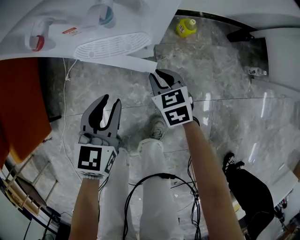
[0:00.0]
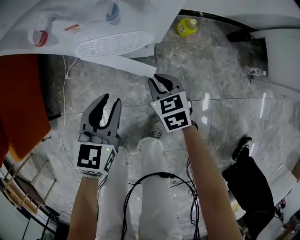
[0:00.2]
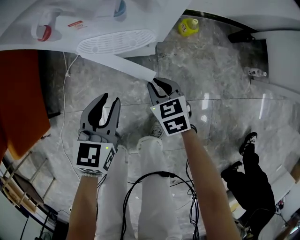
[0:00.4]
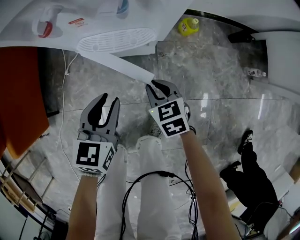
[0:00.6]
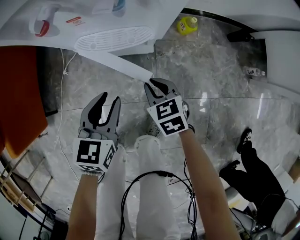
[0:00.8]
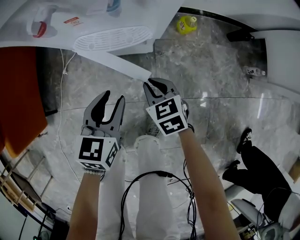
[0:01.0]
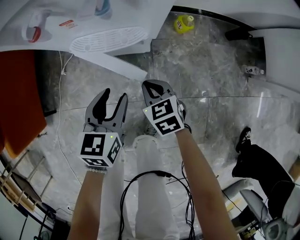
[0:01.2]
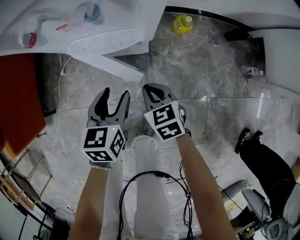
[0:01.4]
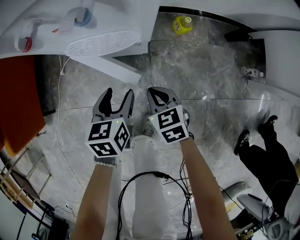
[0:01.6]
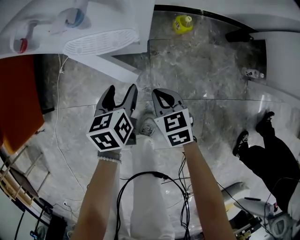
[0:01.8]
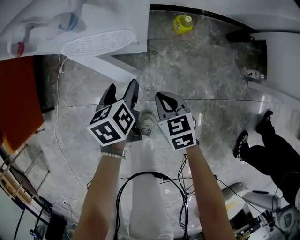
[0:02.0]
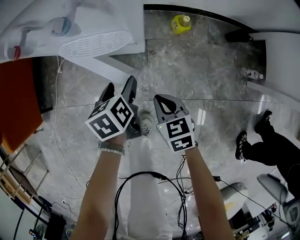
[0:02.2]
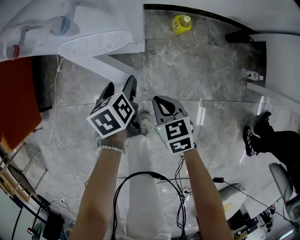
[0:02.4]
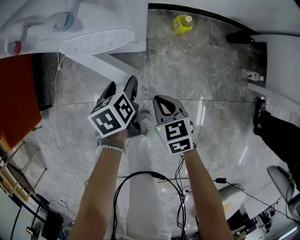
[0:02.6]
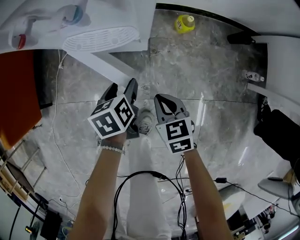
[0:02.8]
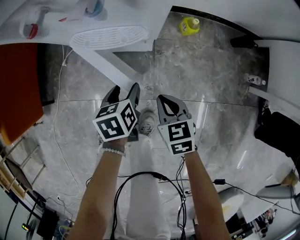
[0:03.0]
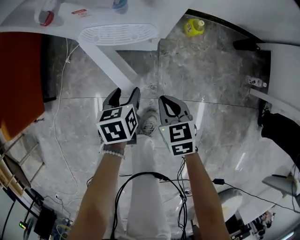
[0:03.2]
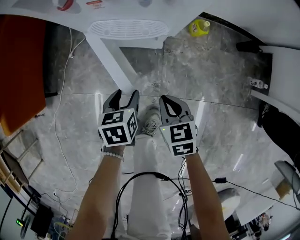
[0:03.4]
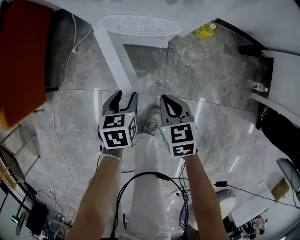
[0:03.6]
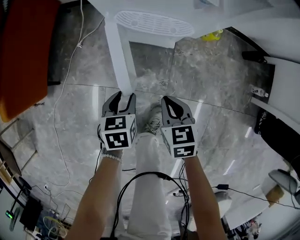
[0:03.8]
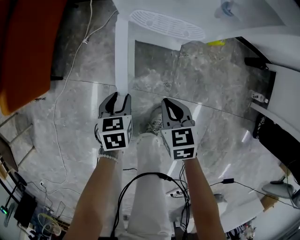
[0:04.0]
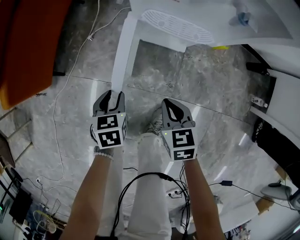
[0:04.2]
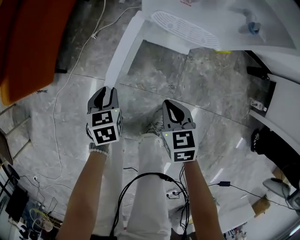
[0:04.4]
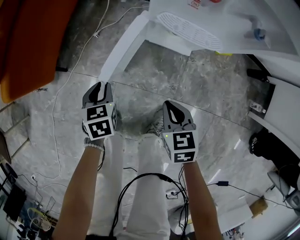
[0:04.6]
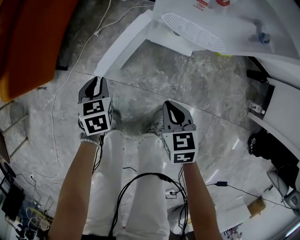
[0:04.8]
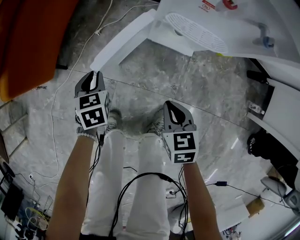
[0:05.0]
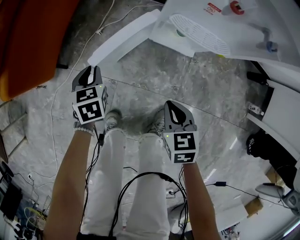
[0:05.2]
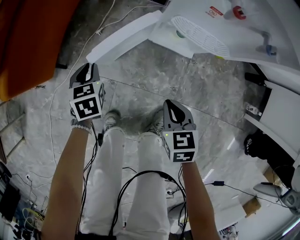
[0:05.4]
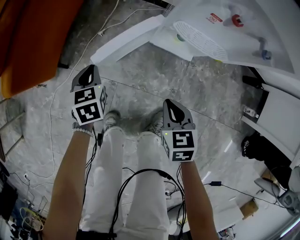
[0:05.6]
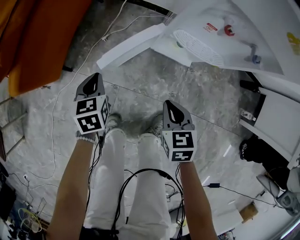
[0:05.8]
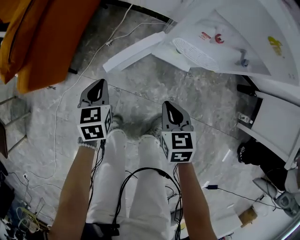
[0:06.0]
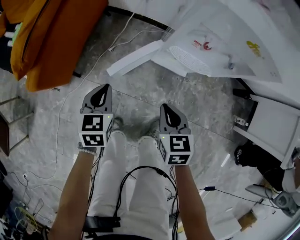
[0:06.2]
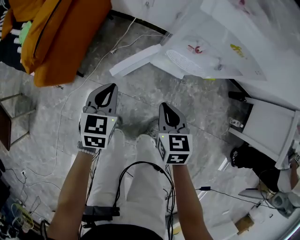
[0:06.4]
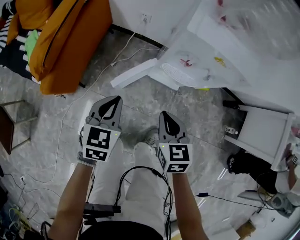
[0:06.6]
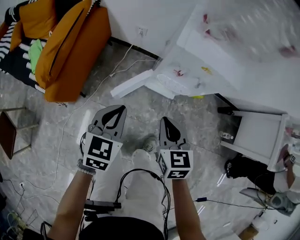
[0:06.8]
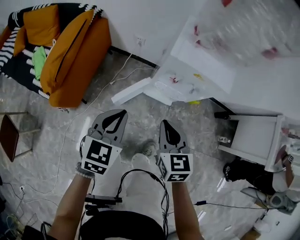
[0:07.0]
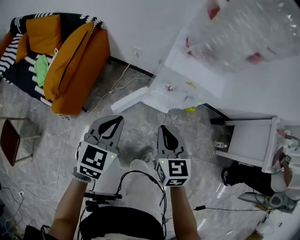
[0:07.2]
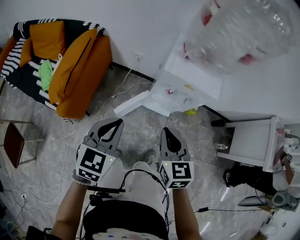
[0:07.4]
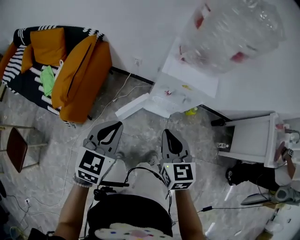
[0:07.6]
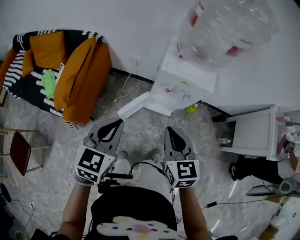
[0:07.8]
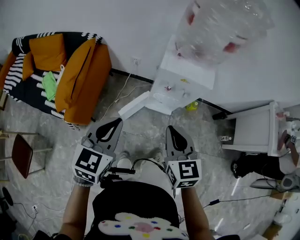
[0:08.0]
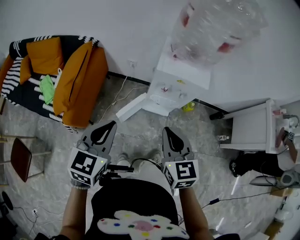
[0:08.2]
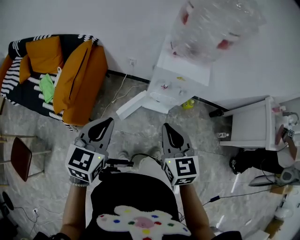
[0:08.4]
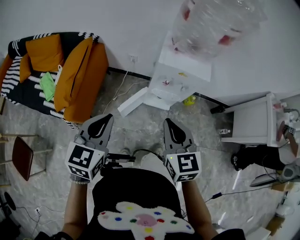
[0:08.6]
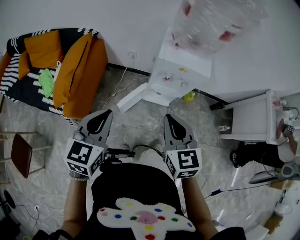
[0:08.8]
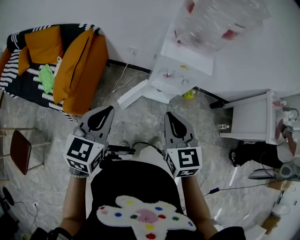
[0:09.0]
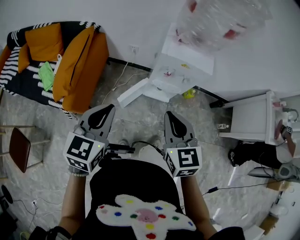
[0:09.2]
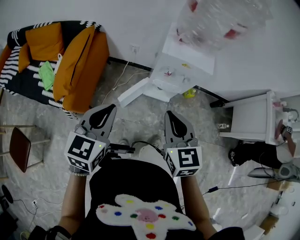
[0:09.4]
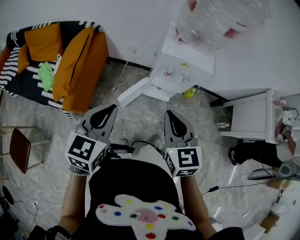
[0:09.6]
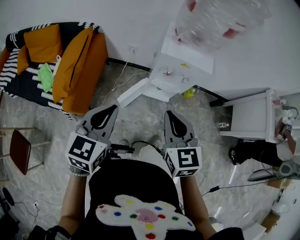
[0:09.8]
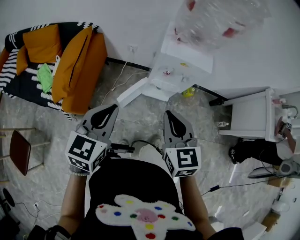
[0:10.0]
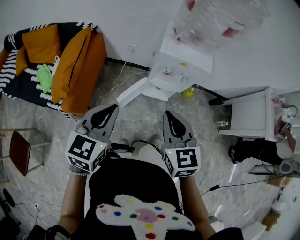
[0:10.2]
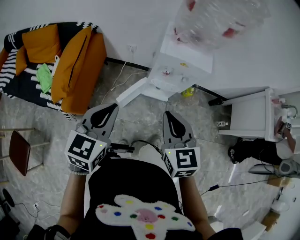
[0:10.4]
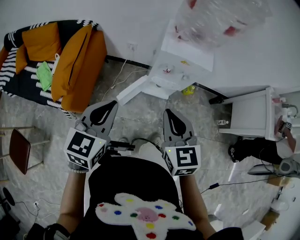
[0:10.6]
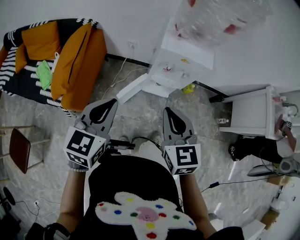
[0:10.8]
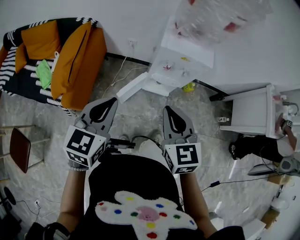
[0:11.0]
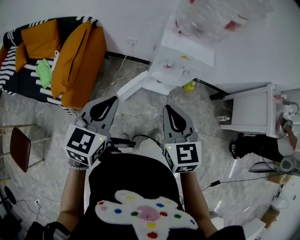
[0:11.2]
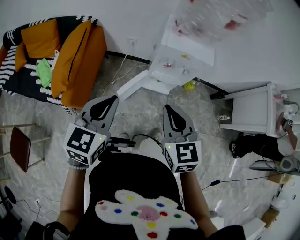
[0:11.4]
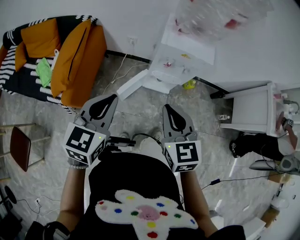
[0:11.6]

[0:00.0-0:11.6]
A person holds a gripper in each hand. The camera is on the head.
0:00.0 to 0:01.4: The left gripper changes place by approximately 5 cm, and opens its fingers. Meanwhile the right gripper goes some 5 cm backward.
0:01.4 to 0:02.8: The left gripper travels downward by approximately 5 cm, and turns by approximately 30 degrees. Meanwhile the right gripper travels to the right by roughly 5 cm.
0:02.8 to 0:04.4: The right gripper is displaced to the left by approximately 15 cm. The left gripper goes roughly 25 cm to the left, turns by some 20 degrees, and closes its fingers.
0:04.4 to 0:05.8: The right gripper changes place by approximately 10 cm. The left gripper shifts some 15 cm forward, to the left and upward.
0:05.8 to 0:07.2: Both grippers move upward, roughly 40 cm. The right gripper turns by approximately 20 degrees. Meanwhile the left gripper turns by about 40 degrees.
0:07.2 to 0:08.8: The left gripper shifts about 15 cm upward, backward and to the left. Meanwhile the right gripper goes some 15 cm upward and backward.
0:08.8 to 0:10.2: The grippers make only small movements.
0:10.2 to 0:11.6: Both grippers stay put.

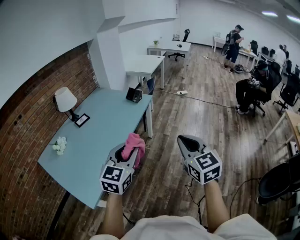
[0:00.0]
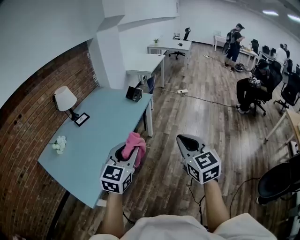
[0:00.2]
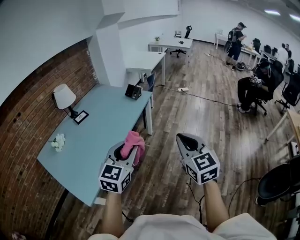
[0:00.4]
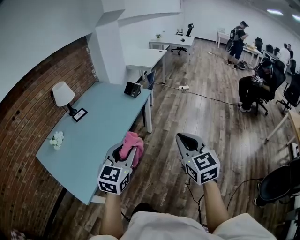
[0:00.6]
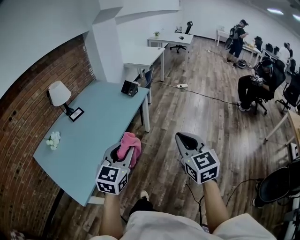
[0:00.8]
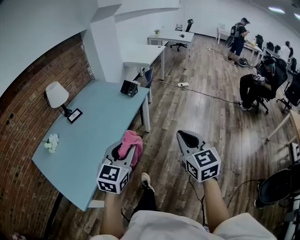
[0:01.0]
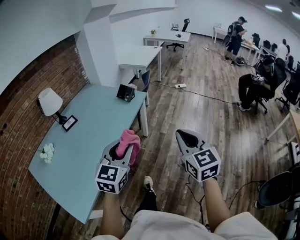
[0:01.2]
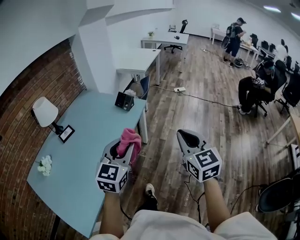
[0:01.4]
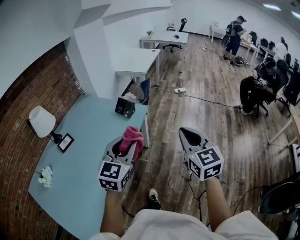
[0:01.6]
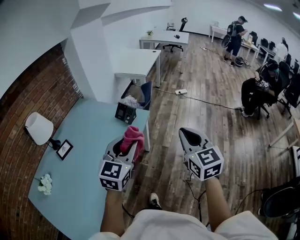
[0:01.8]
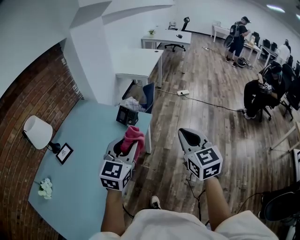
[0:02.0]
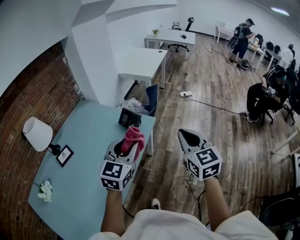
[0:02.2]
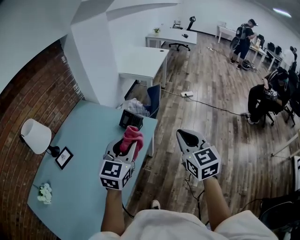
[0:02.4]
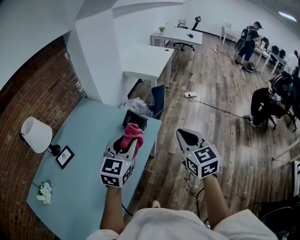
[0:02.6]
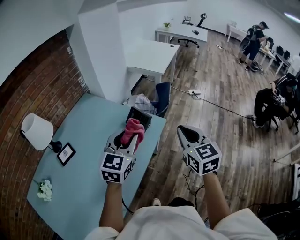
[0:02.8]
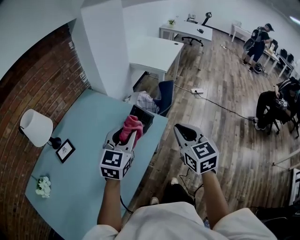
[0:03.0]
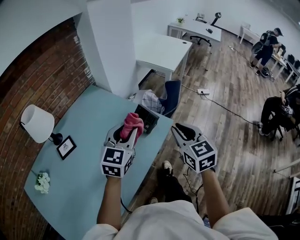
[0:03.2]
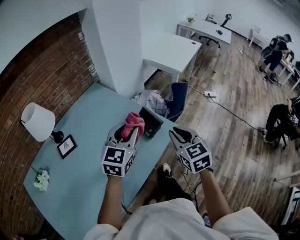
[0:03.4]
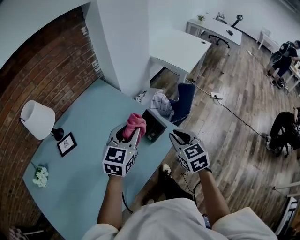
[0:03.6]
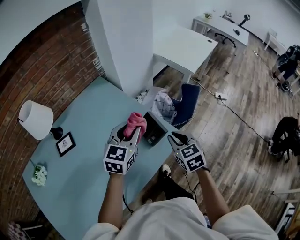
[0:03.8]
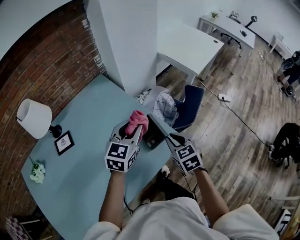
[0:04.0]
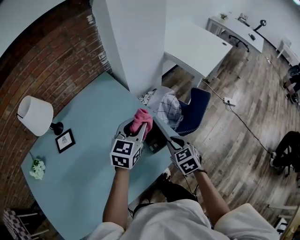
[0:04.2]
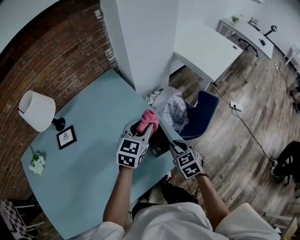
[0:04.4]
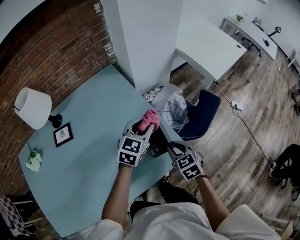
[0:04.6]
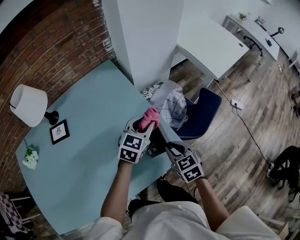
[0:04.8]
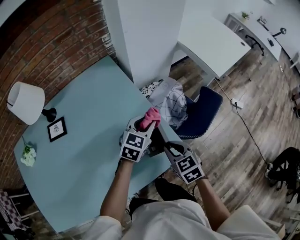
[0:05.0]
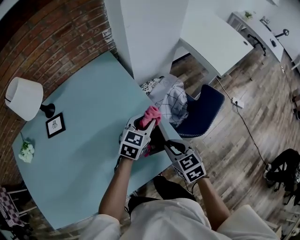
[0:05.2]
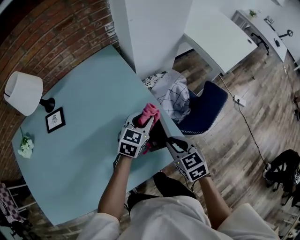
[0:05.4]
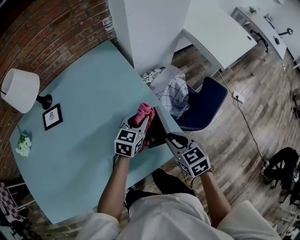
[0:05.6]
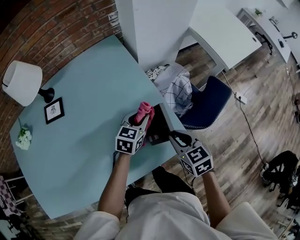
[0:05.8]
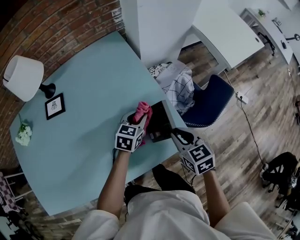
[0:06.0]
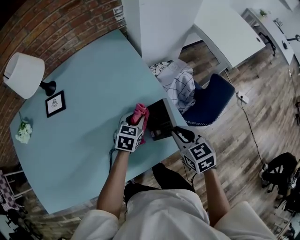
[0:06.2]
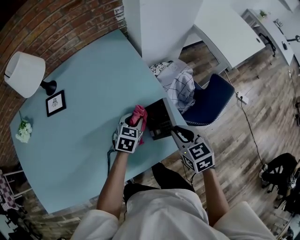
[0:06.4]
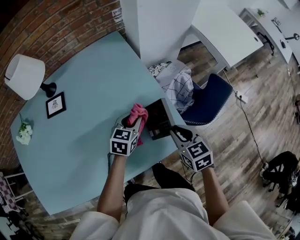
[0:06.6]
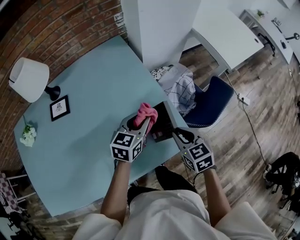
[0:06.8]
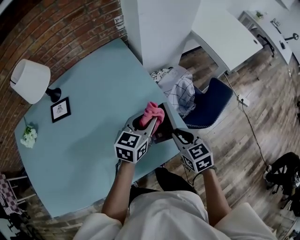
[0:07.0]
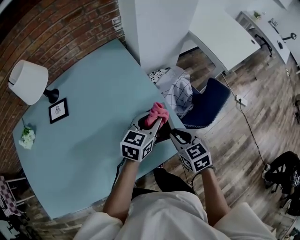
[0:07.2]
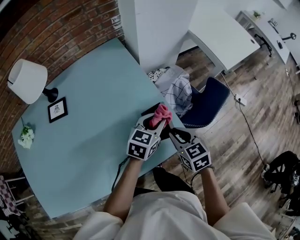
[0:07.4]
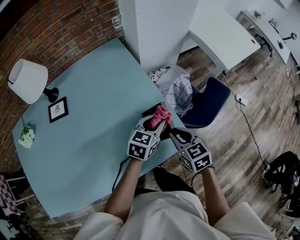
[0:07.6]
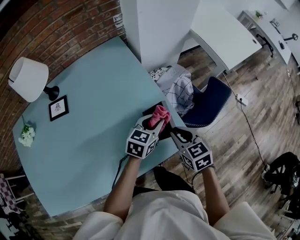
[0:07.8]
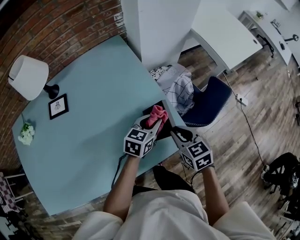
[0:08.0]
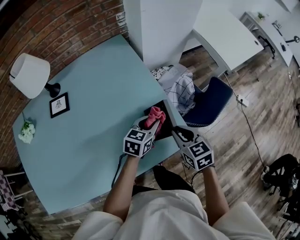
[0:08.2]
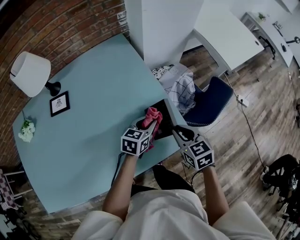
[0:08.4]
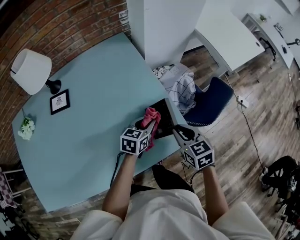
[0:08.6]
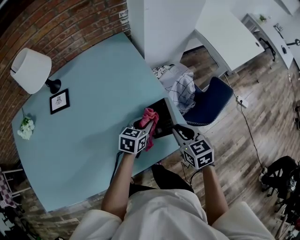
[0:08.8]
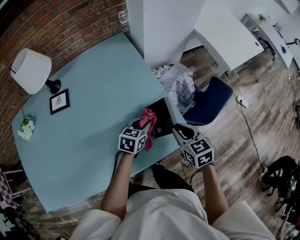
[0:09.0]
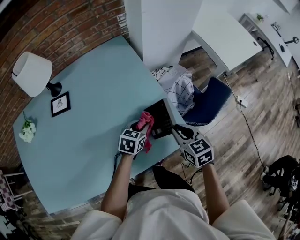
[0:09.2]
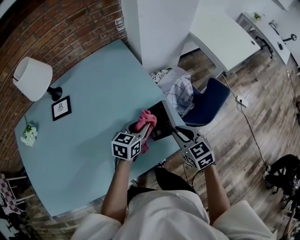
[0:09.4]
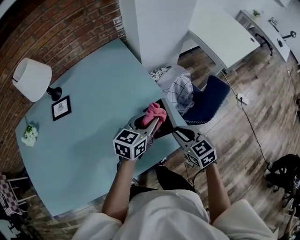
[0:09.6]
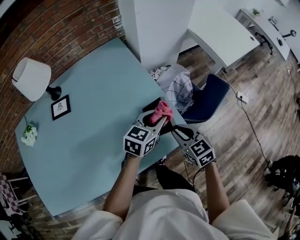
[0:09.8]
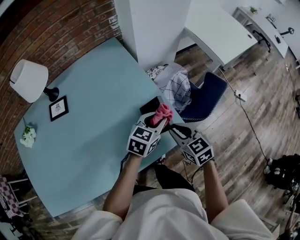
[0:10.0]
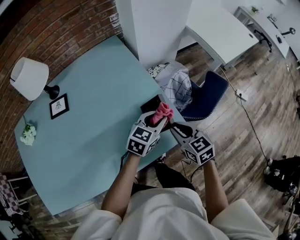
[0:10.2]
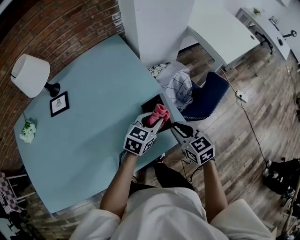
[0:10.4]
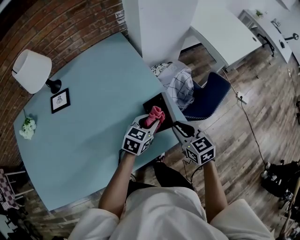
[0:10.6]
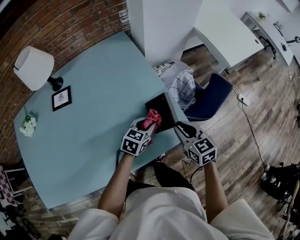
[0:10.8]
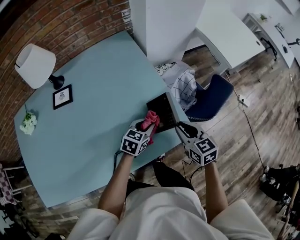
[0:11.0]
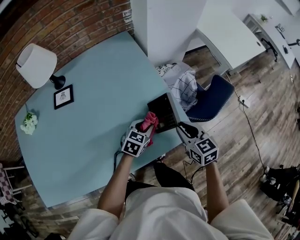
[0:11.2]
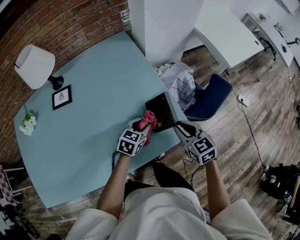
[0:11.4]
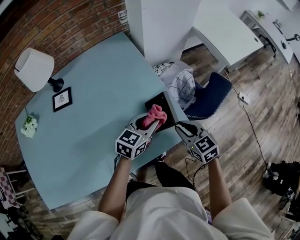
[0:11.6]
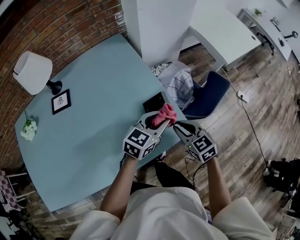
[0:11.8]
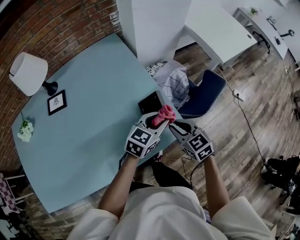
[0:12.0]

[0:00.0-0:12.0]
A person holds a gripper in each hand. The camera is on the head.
0:00.0 to 0:01.6: The grippers both shift forward by approximately 30 cm.
0:01.6 to 0:03.0: The grippers both shift forward and to the left by some 30 cm.
0:03.0 to 0:04.4: The right gripper goes approximately 30 cm downward and forward, and rotates approximately 40 degrees; the left gripper shifts about 25 cm forward and downward, and rotates approximately 20 degrees.
0:04.4 to 0:06.0: The left gripper heads downward, covering about 15 cm, and rotates some 20 degrees.
0:06.0 to 0:07.6: The left gripper shifts some 10 cm to the right and upward.
0:07.6 to 0:09.0: The left gripper shifts approximately 10 cm downward and to the left.
0:09.0 to 0:10.4: The left gripper heads to the right and upward, covering about 10 cm.
0:10.4 to 0:12.0: The left gripper goes downward and returns, roughly 5 cm each way.
